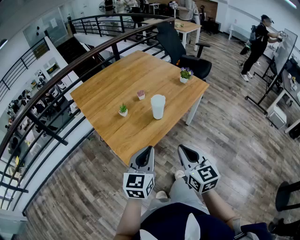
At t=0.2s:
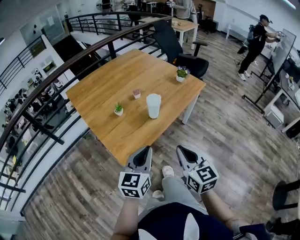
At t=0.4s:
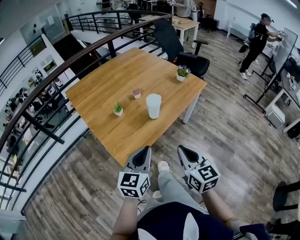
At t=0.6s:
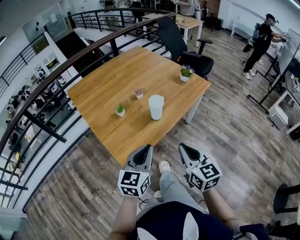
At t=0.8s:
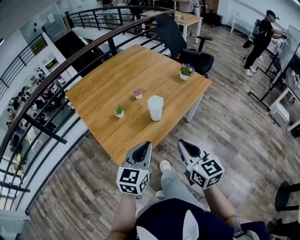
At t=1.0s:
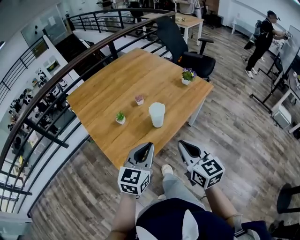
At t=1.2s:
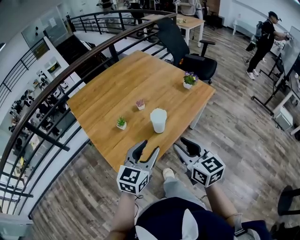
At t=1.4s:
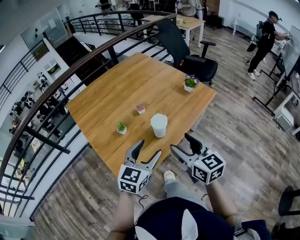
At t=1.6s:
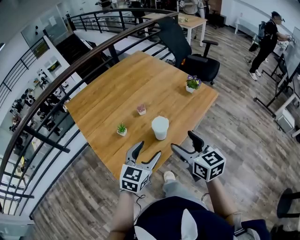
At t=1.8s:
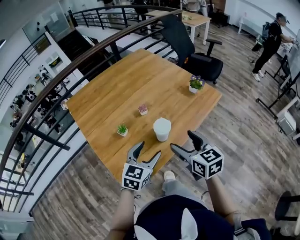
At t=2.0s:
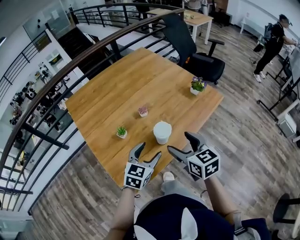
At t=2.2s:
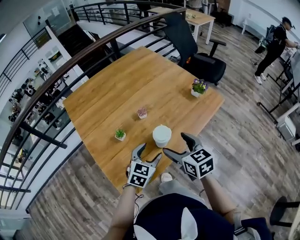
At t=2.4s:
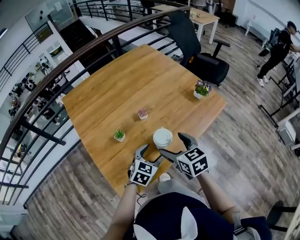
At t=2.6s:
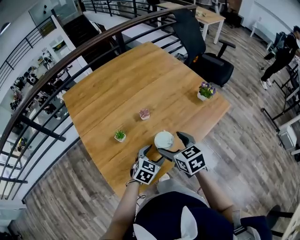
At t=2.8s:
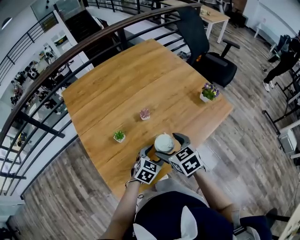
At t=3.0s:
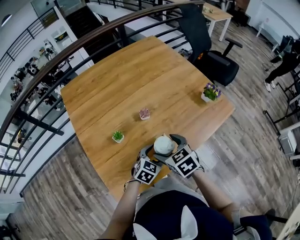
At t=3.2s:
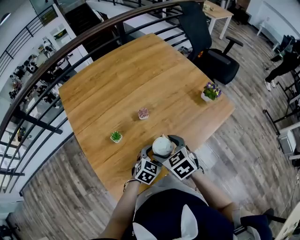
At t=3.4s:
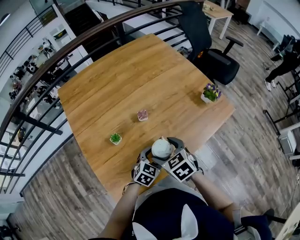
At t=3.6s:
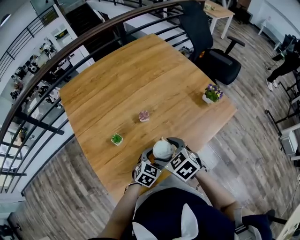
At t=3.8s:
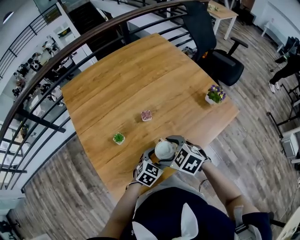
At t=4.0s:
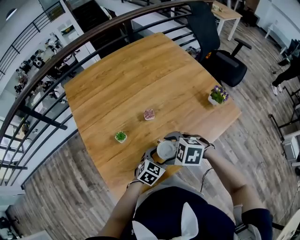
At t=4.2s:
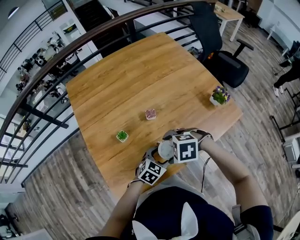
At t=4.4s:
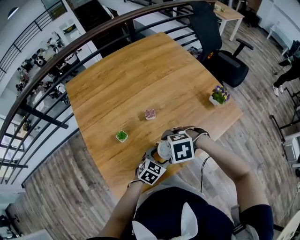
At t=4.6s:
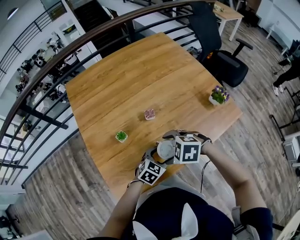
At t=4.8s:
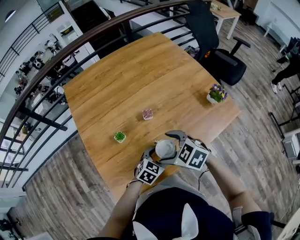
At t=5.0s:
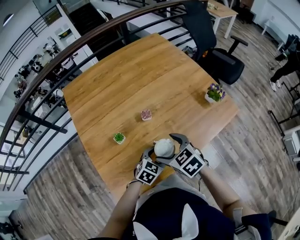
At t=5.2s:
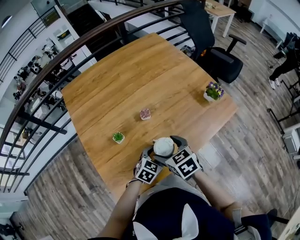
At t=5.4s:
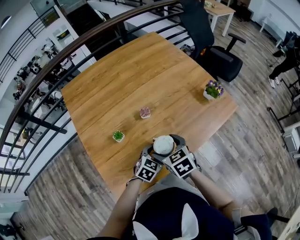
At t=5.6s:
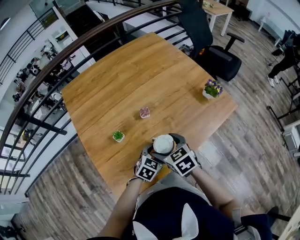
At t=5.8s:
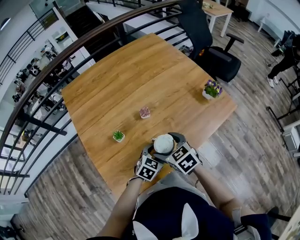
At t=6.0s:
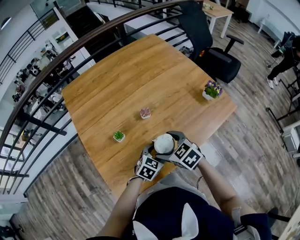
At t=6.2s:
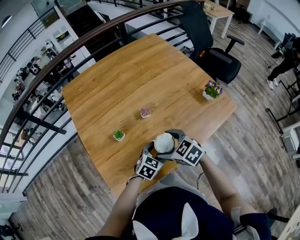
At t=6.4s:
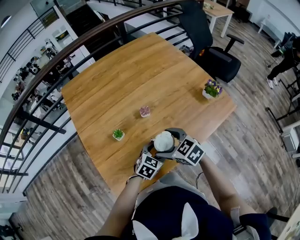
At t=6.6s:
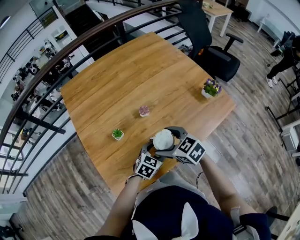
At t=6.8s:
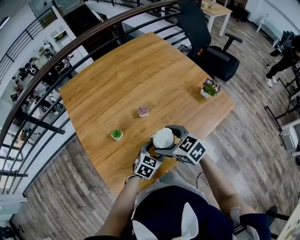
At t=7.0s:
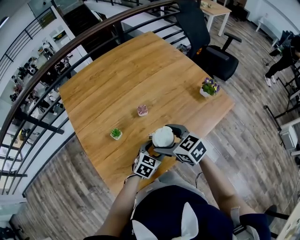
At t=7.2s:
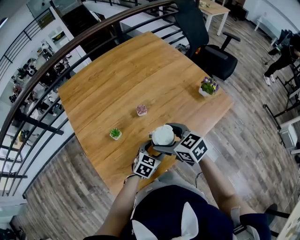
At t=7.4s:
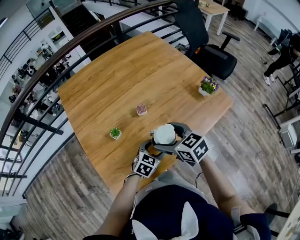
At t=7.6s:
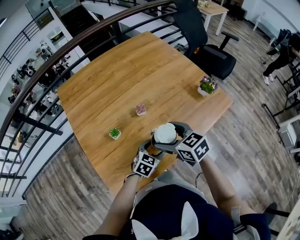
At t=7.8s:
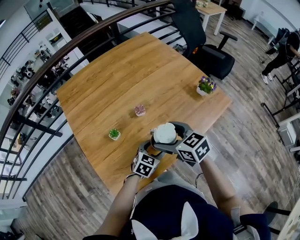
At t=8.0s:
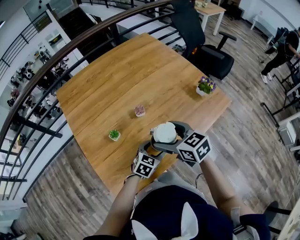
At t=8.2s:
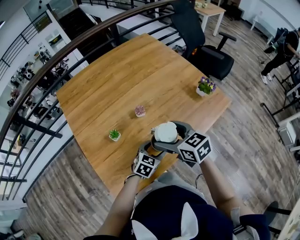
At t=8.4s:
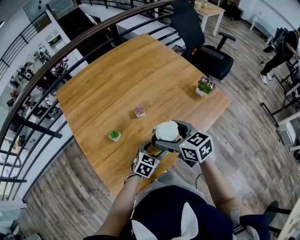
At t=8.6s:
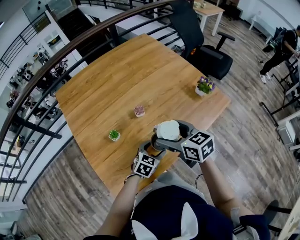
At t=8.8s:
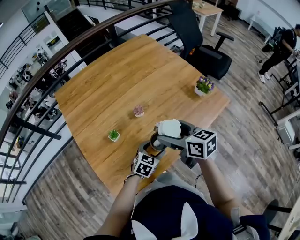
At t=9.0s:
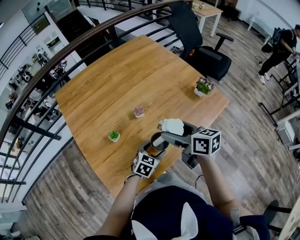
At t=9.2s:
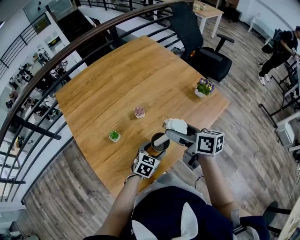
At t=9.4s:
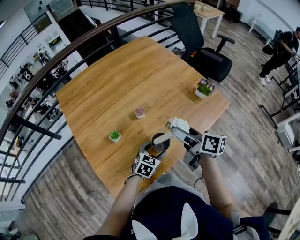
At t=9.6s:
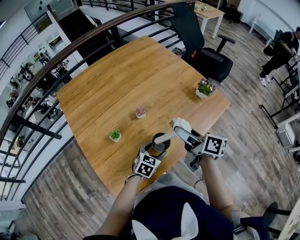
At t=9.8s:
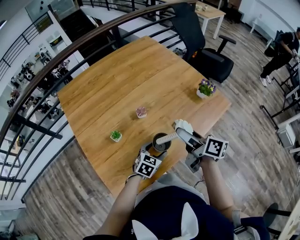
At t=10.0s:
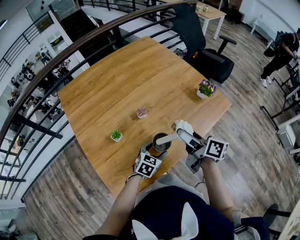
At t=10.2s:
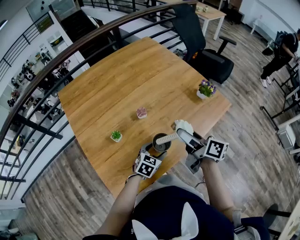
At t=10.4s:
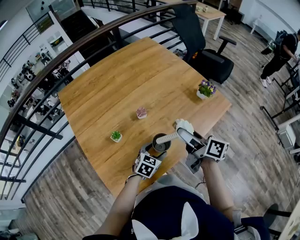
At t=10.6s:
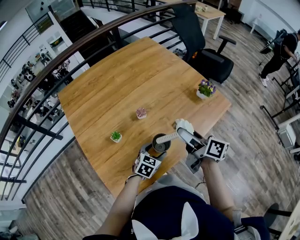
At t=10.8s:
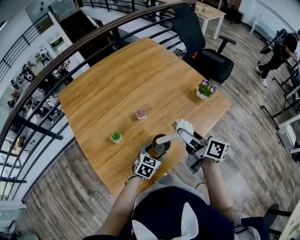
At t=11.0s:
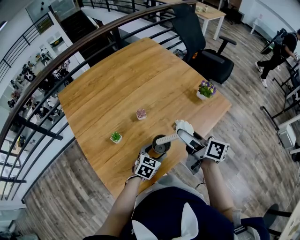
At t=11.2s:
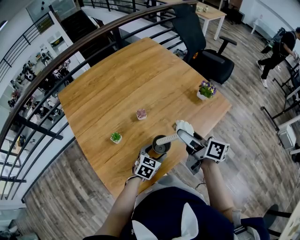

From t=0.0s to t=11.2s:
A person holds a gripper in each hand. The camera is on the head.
From t=0.0s to t=1.6s: The grippers both shift forward by approximately 20 cm. The left gripper opens up. The right gripper opens up.
From t=1.6s to t=3.2s: The left gripper travels downward and forward by roughly 20 cm, and swivels approximately 20 degrees, while the right gripper moves downward, forward and to the left, roughly 20 cm, and angles its fingers downward, by about 30 degrees.
From t=3.2s to t=4.8s: The right gripper changes its angle by approximately 30 degrees.
From t=6.4s to t=8.0s: The right gripper heads upward, covering approximately 5 cm.
From t=8.0s to t=9.6s: The right gripper is displaced to the right by roughly 10 cm, and rolls clockwise, seen from behind, by approximately 50 degrees.
From t=9.6s to t=11.2s: The two grippers keep their place.

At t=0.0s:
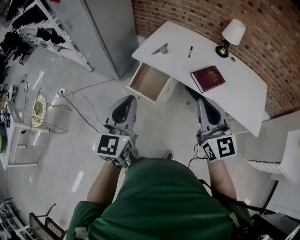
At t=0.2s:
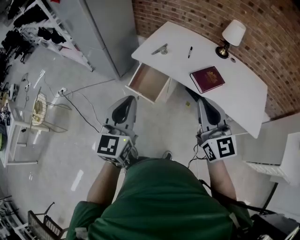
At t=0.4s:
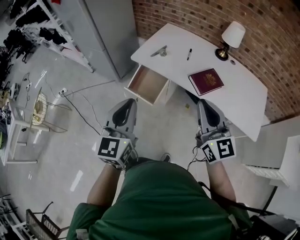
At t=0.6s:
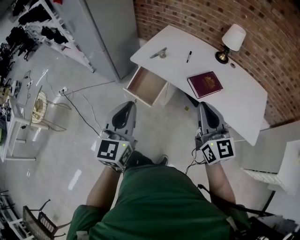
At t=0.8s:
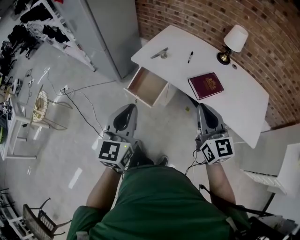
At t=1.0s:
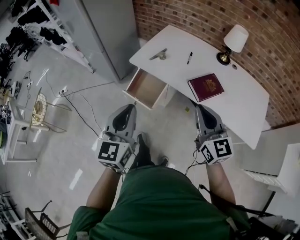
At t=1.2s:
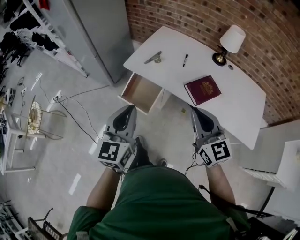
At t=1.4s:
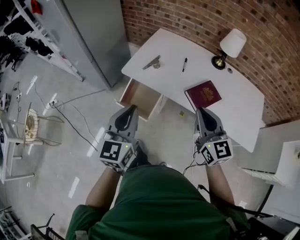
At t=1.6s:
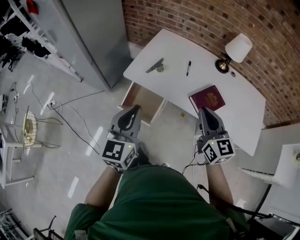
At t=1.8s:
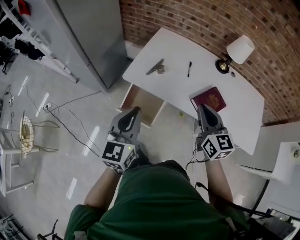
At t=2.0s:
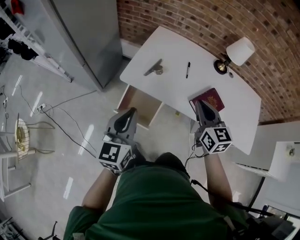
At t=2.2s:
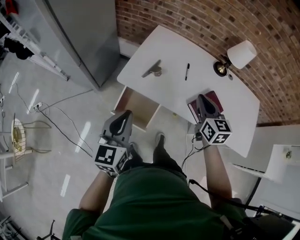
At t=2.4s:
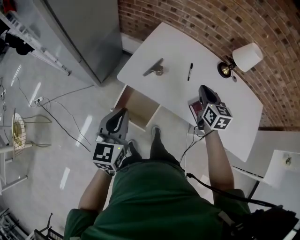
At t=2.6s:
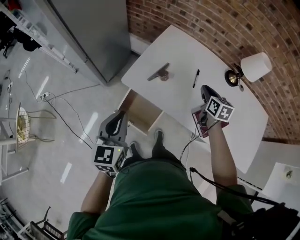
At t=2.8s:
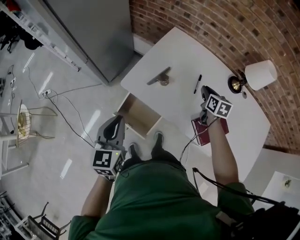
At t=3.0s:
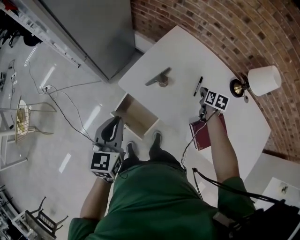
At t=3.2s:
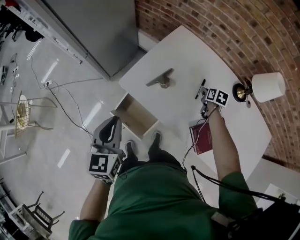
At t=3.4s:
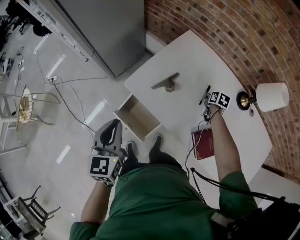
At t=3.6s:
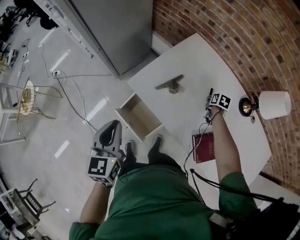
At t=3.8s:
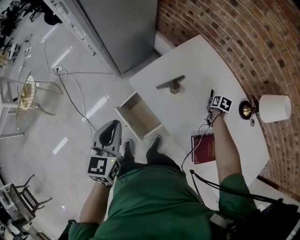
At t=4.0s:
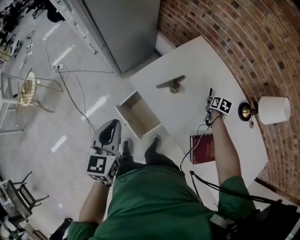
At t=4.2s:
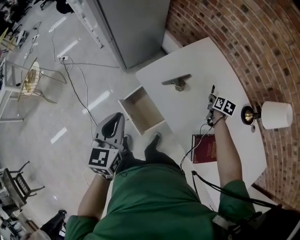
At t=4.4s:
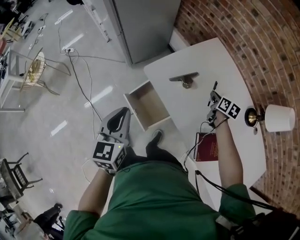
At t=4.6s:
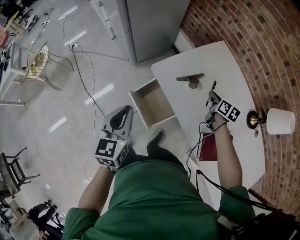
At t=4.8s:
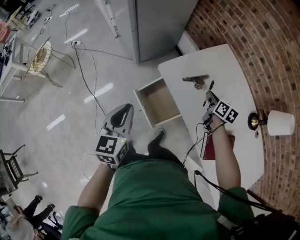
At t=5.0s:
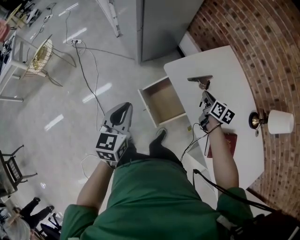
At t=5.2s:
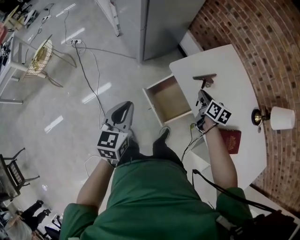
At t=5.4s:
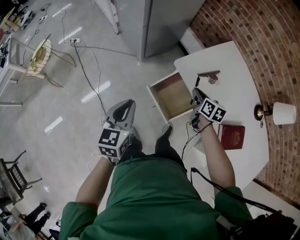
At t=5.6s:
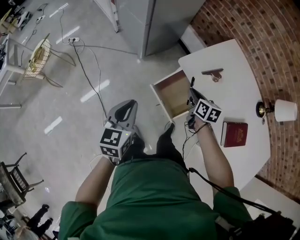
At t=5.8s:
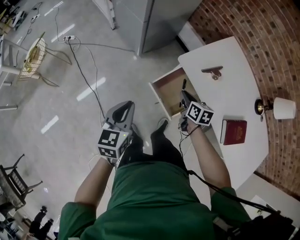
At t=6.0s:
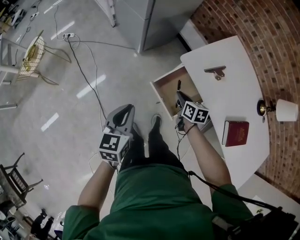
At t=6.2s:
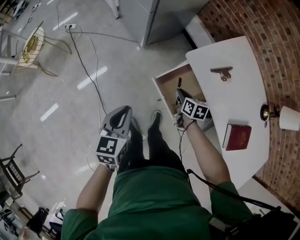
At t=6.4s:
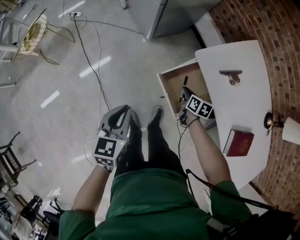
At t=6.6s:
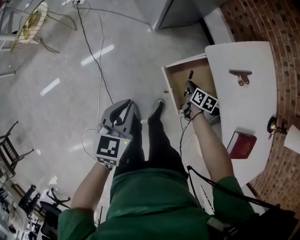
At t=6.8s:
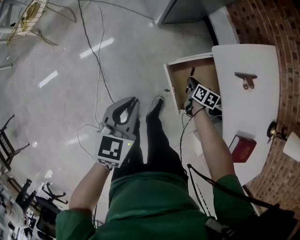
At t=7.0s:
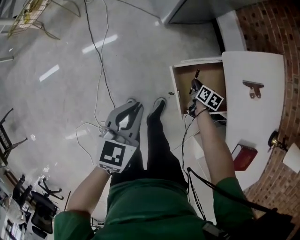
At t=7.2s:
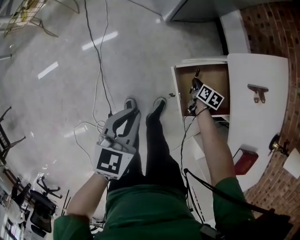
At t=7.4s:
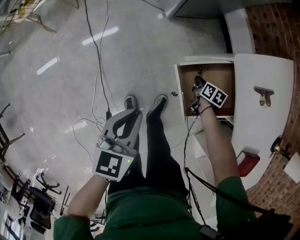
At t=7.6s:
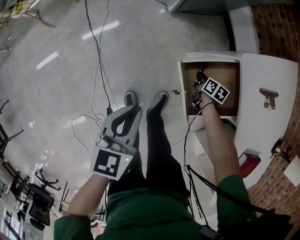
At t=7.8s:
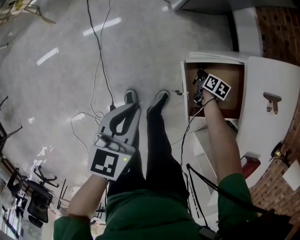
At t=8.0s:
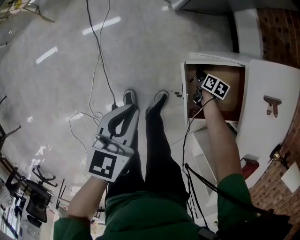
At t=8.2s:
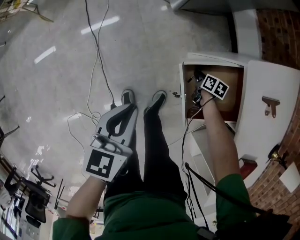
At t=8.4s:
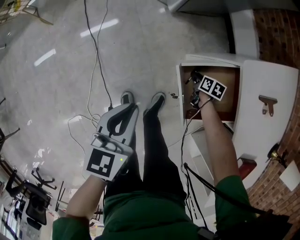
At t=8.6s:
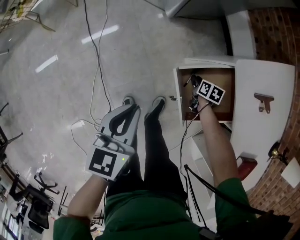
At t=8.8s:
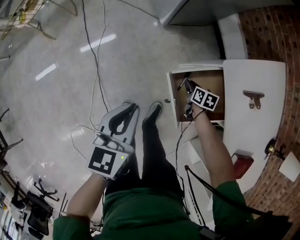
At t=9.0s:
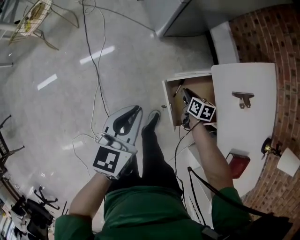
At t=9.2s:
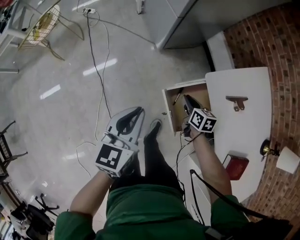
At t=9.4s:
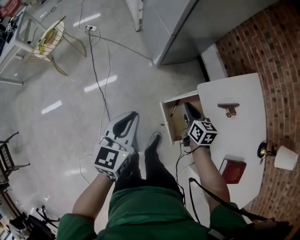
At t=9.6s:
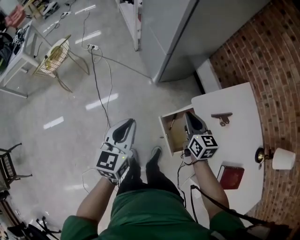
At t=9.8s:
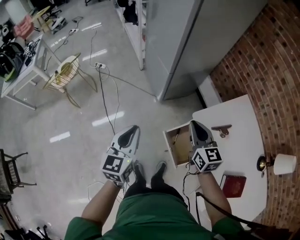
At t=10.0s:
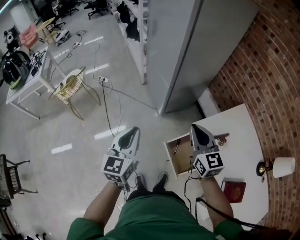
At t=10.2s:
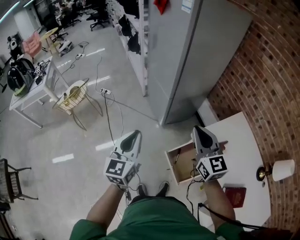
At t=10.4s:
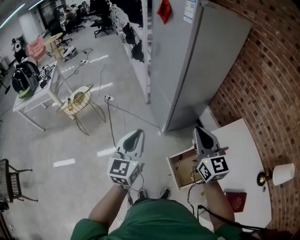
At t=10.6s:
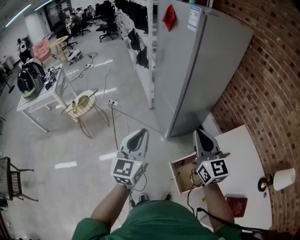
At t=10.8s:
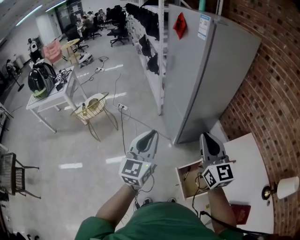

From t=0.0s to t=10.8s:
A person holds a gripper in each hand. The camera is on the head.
From t=0.0s to t=1.6s: The left gripper heads forward, covering some 20 cm. Meanwhile the right gripper travels forward and downward by about 20 cm.
From t=1.6s to t=3.0s: The right gripper heads forward and downward, covering approximately 50 cm, and tips its fingers downward by about 40 degrees. The left gripper travels forward and downward by approximately 20 cm, and swivels approximately 20 degrees.
From t=3.0s to t=4.6s: The left gripper heads backward, covering about 5 cm. Meanwhile the right gripper travels to the left by about 15 cm, and changes its angle by about 20 degrees.
From t=4.6s to t=6.2s: The right gripper is displaced to the left by some 35 cm. The left gripper travels to the left and downward by about 20 cm.
From t=6.2s to t=7.8s: The right gripper is displaced downward by approximately 30 cm; the left gripper moves downward, approximately 15 cm.
From t=7.8s to t=9.2s: The right gripper is displaced upward by roughly 25 cm, and swivels approximately 20 degrees; the left gripper travels upward by approximately 15 cm.
From t=9.2s to t=10.8s: The right gripper is displaced upward by roughly 50 cm, and tips its fingers upward by approximately 50 degrees. Meanwhile the left gripper shifts about 30 cm upward, and changes its angle by roughly 30 degrees.

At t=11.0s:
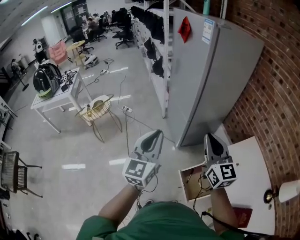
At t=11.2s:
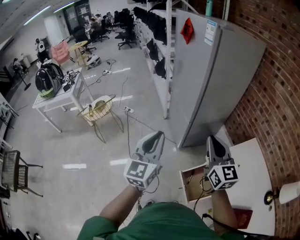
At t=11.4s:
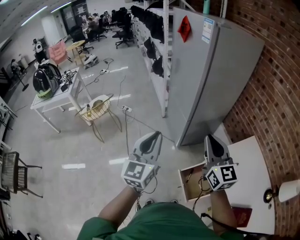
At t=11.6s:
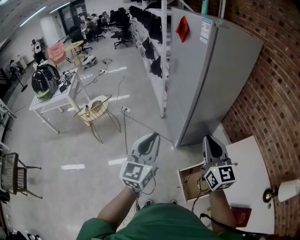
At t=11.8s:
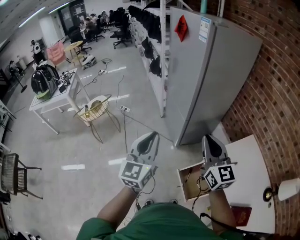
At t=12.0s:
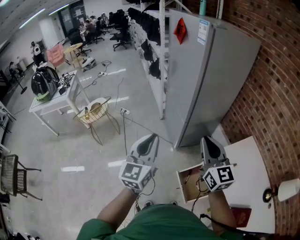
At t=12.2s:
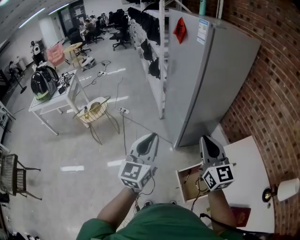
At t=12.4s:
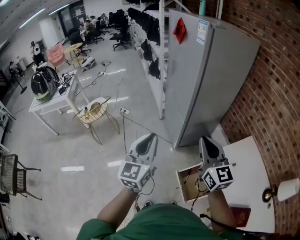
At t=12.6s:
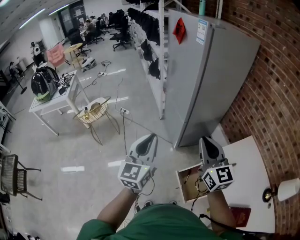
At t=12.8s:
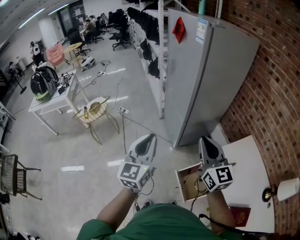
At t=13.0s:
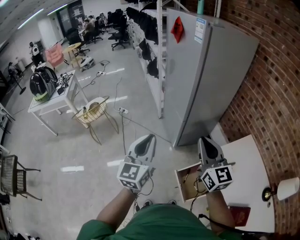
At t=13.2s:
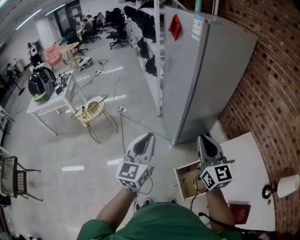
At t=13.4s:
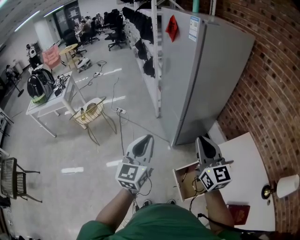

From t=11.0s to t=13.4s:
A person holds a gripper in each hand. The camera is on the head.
From t=11.0s to t=12.2s: The two grippers keep their place.
From t=12.2s to t=13.4s: The grippers make only small movements.
